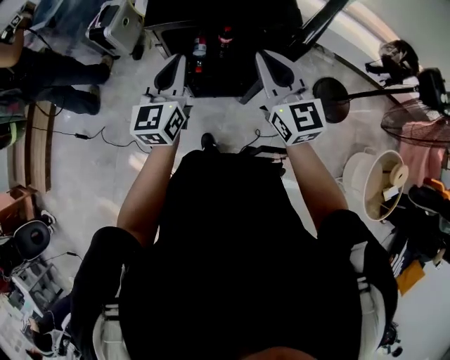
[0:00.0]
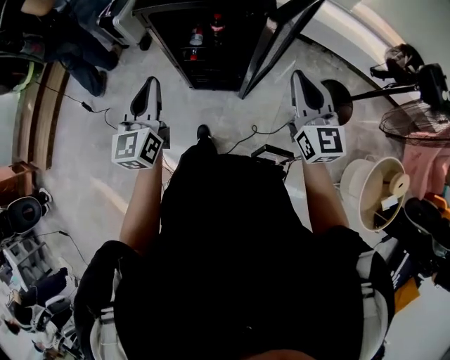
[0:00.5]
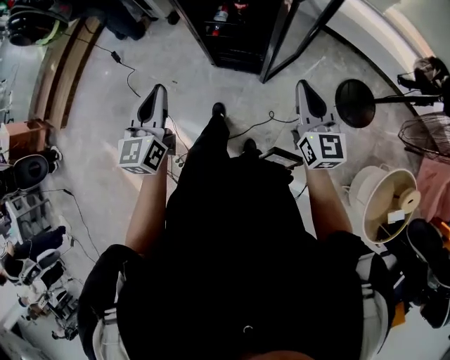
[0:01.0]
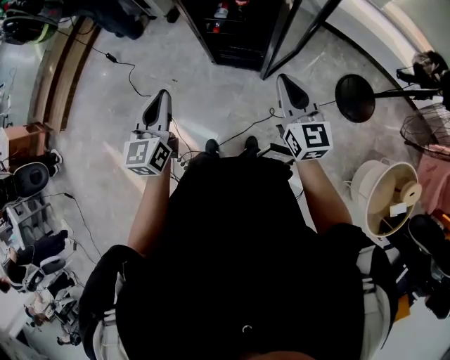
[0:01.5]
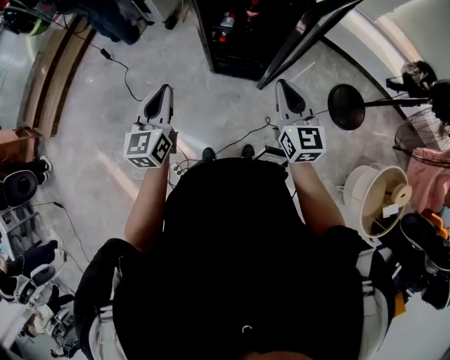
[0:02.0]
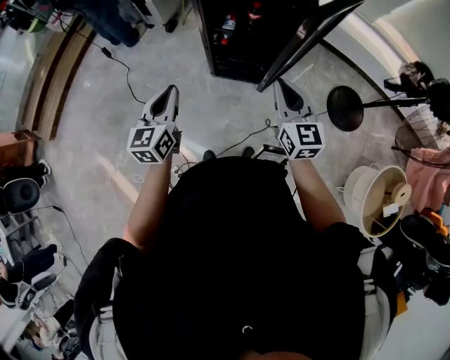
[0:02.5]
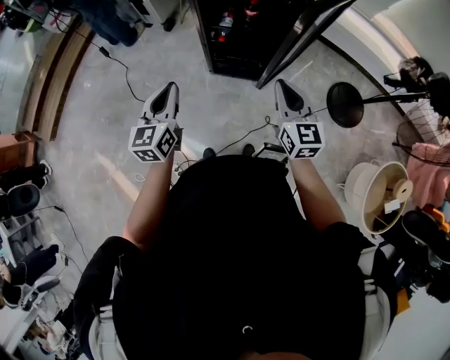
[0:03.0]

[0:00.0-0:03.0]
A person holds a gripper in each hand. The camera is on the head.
0:00.0 to 0:01.5: The left gripper travels backward by about 25 cm, while the right gripper goes about 20 cm backward and downward.
0:01.5 to 0:03.0: The grippers both shift to the left by some 5 cm.

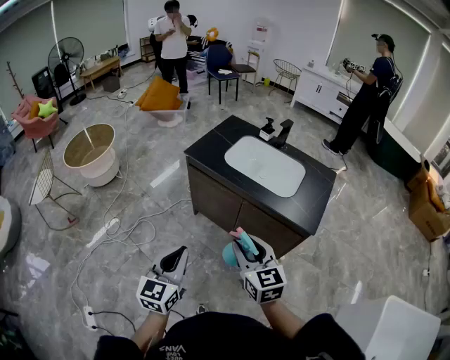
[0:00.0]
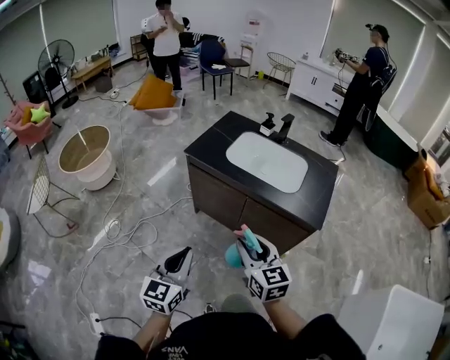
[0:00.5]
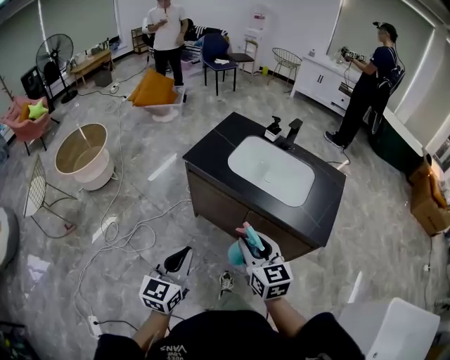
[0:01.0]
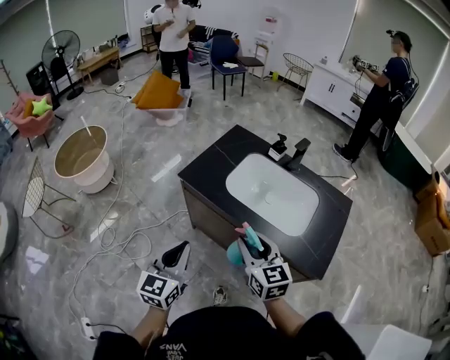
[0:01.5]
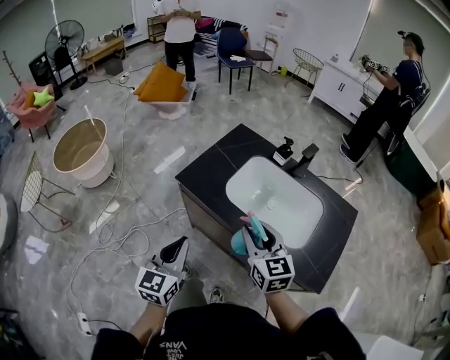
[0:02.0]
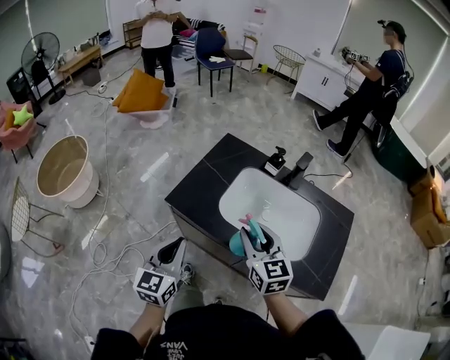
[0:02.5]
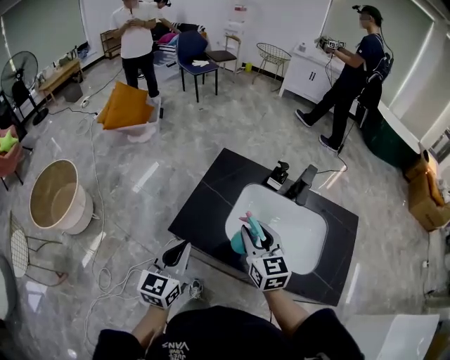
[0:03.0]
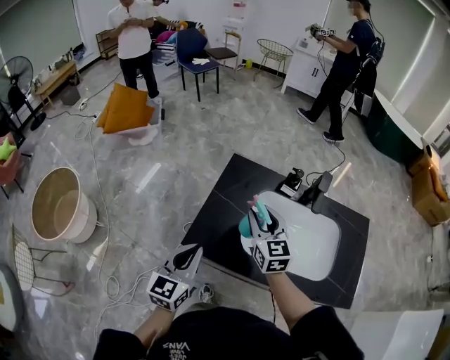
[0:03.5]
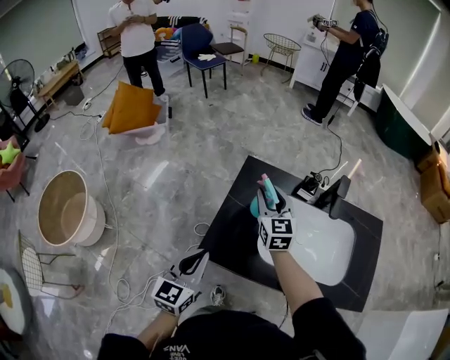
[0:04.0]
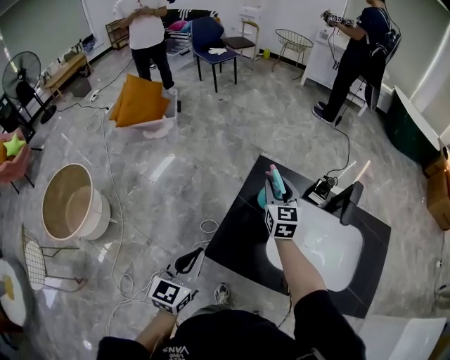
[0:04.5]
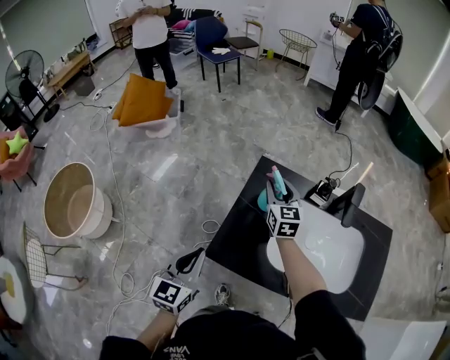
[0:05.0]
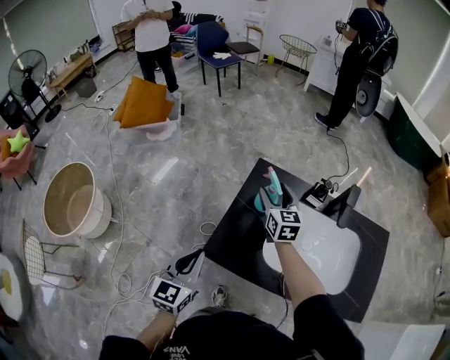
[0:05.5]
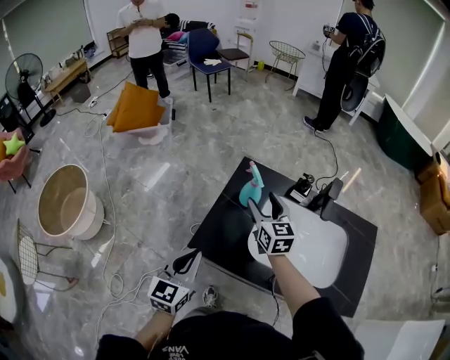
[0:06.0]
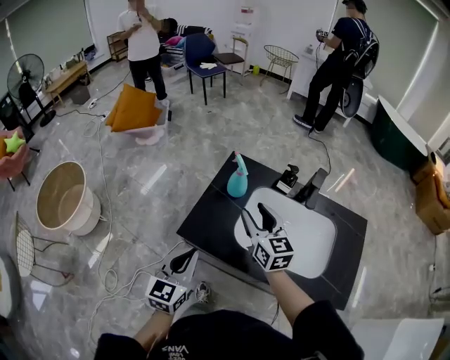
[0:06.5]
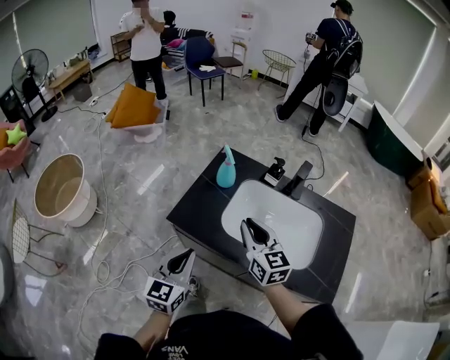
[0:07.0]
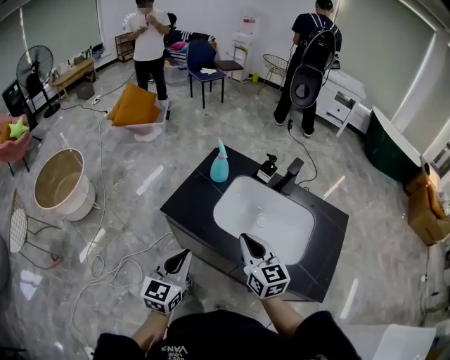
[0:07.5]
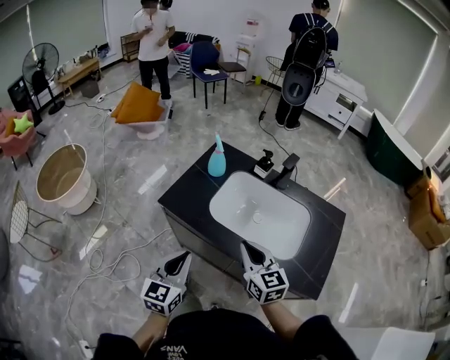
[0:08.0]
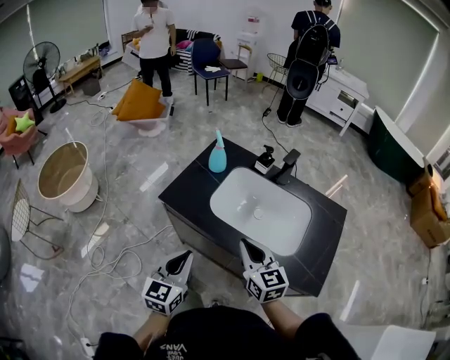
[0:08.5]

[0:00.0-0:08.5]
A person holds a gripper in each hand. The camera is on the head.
0:00.0 to 0:02.0: The grippers both shift forward by roughly 30 cm.
0:02.0 to 0:04.0: The right gripper goes some 35 cm forward, and turns by approximately 20 degrees; the left gripper heads forward and to the left, covering approximately 30 cm, and swivels about 20 degrees.
0:04.0 to 0:06.5: The right gripper travels backward by roughly 15 cm; the left gripper is displaced backward and to the right by approximately 10 cm.
0:06.5 to 0:08.5: The left gripper moves backward and to the right, approximately 20 cm. Meanwhile the right gripper shifts about 25 cm backward, and closes up.

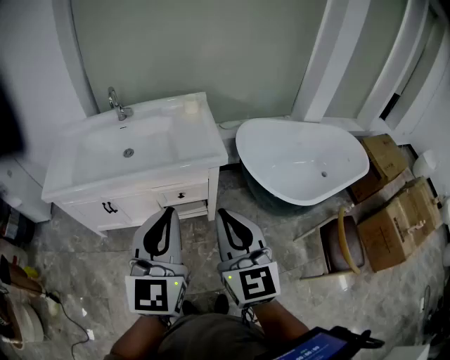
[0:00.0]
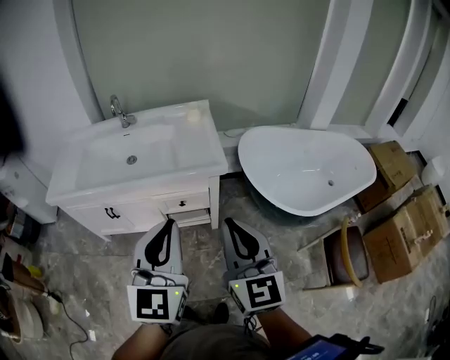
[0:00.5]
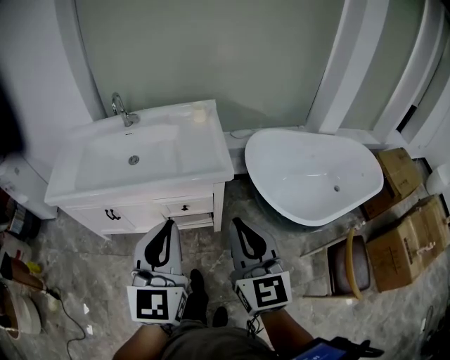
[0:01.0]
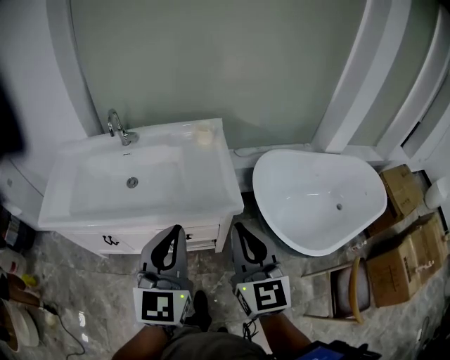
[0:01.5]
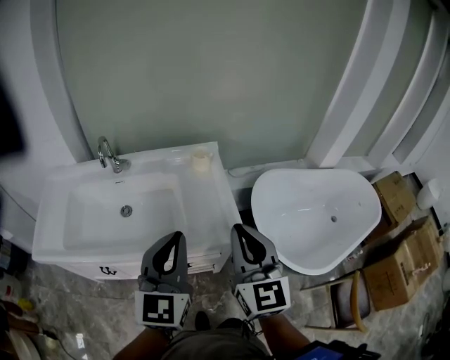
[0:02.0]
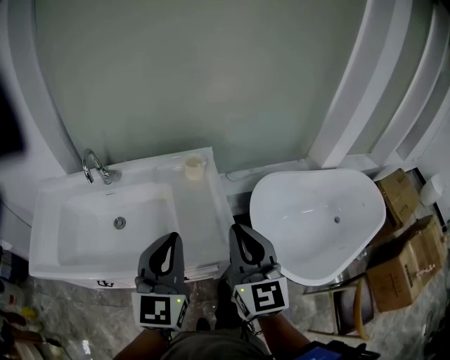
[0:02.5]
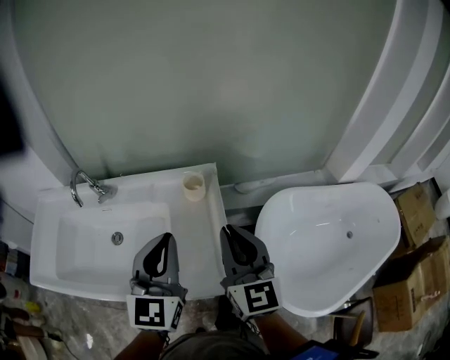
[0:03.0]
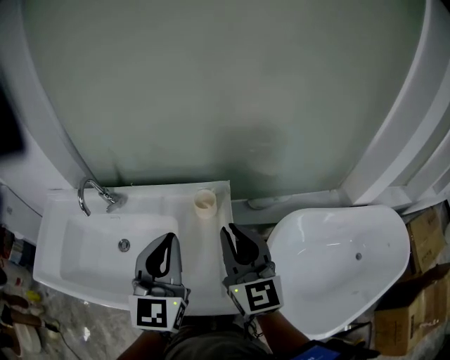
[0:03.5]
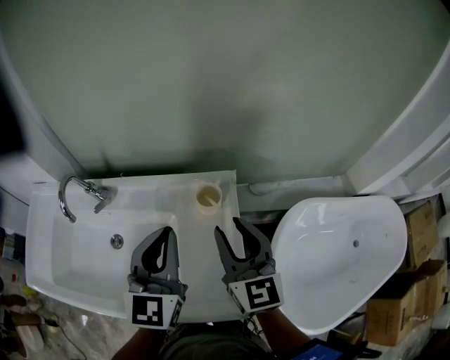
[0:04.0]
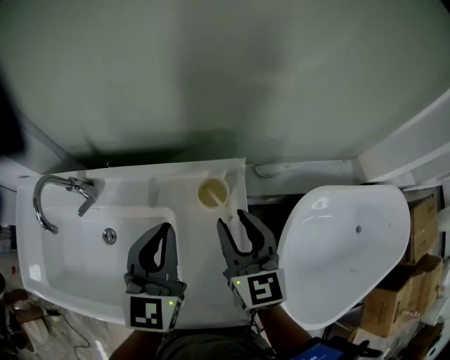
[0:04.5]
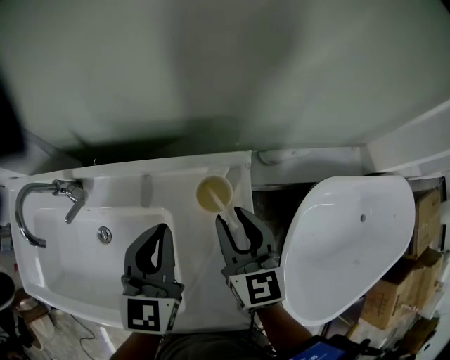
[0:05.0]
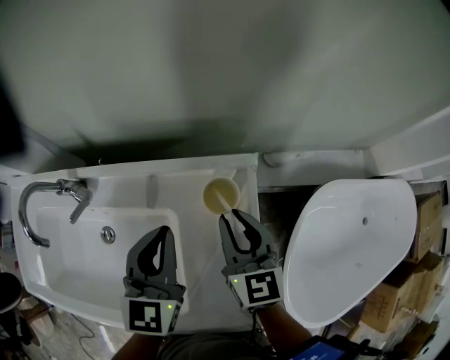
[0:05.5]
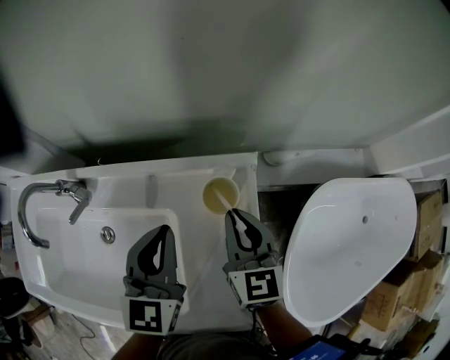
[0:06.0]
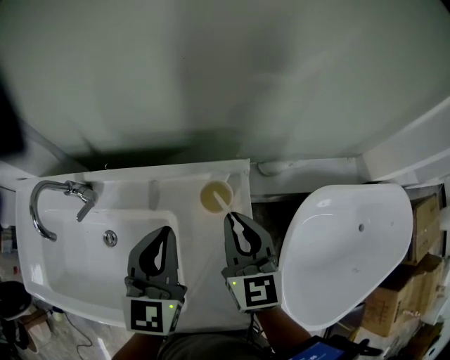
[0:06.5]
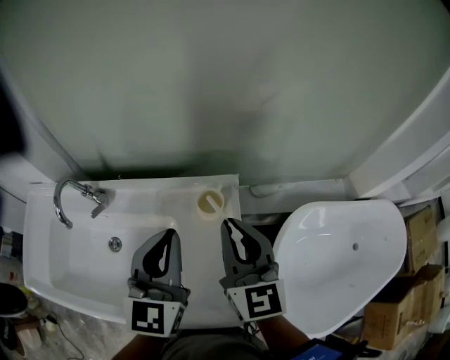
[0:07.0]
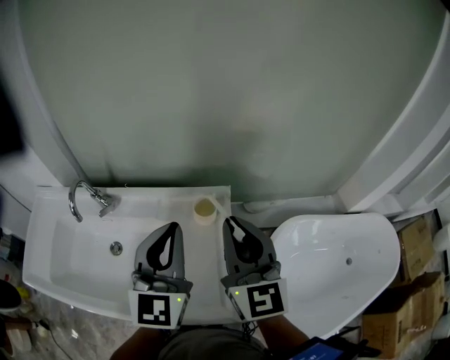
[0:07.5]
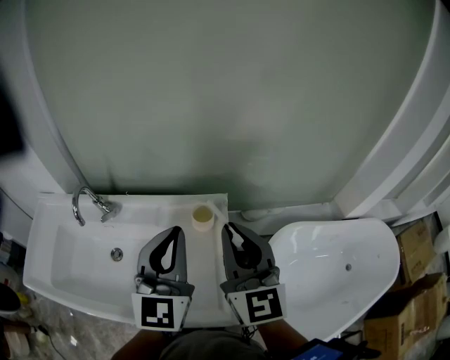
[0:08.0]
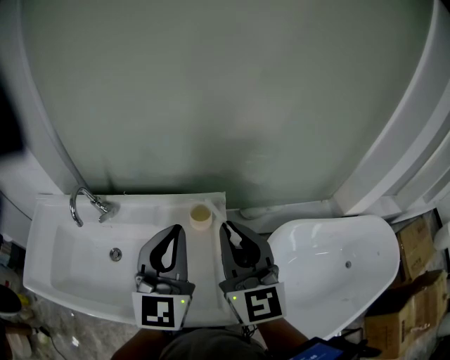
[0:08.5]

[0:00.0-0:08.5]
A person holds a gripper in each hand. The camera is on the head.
0:00.0 to 0:02.0: Both grippers move forward, about 30 cm.
0:02.0 to 0:04.0: Both grippers travel together forward, about 35 cm. The right gripper opens up.
0:04.0 to 0:06.5: The grippers both shift downward and forward by approximately 10 cm. The right gripper closes.
0:06.5 to 0:08.5: The grippers both shift upward and backward by some 20 cm. The right gripper rotates some 20 degrees.

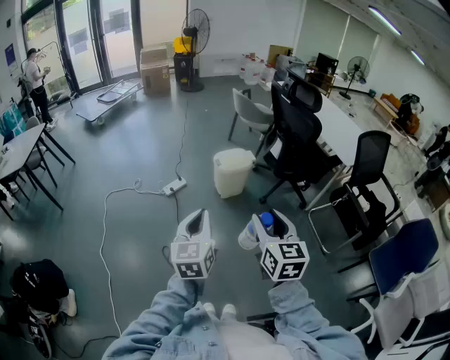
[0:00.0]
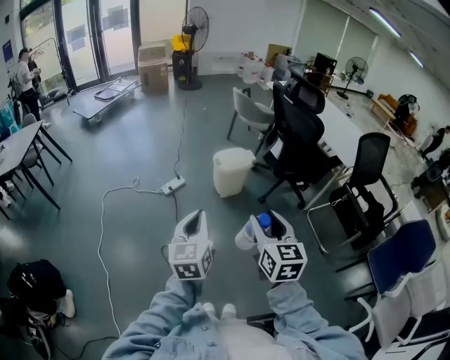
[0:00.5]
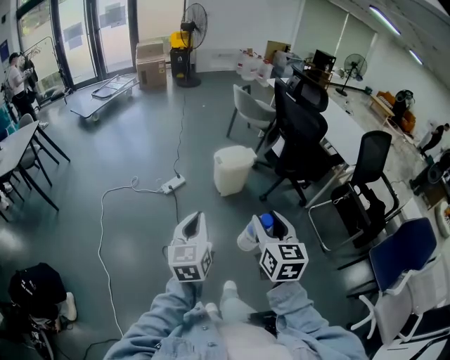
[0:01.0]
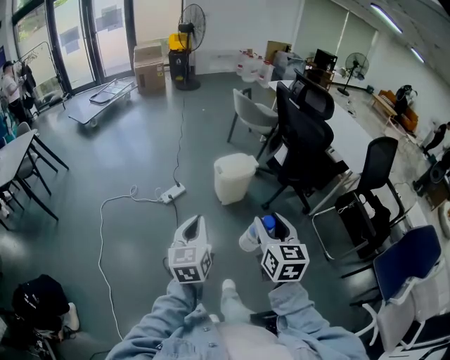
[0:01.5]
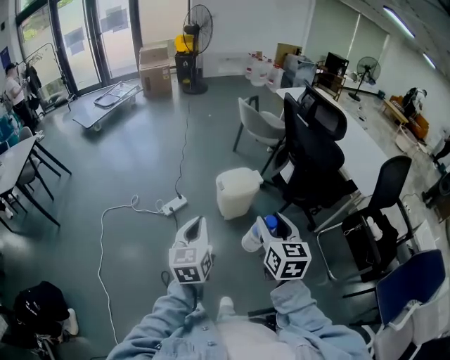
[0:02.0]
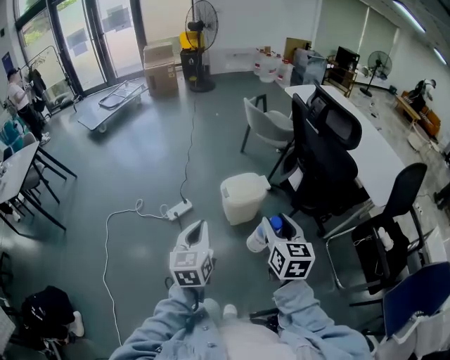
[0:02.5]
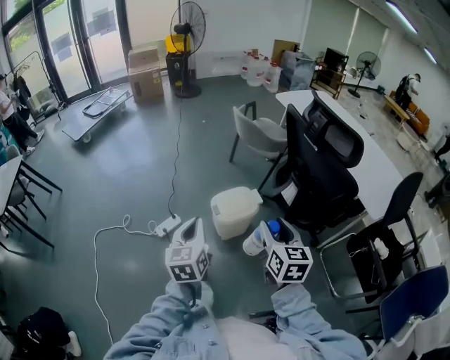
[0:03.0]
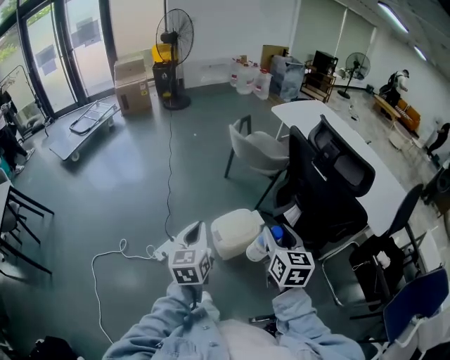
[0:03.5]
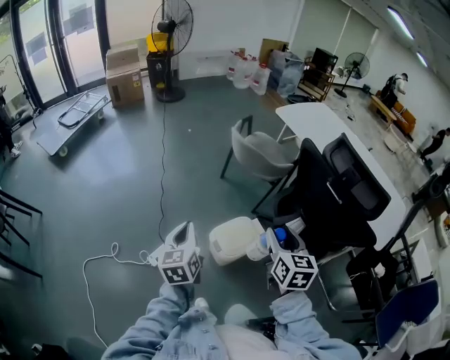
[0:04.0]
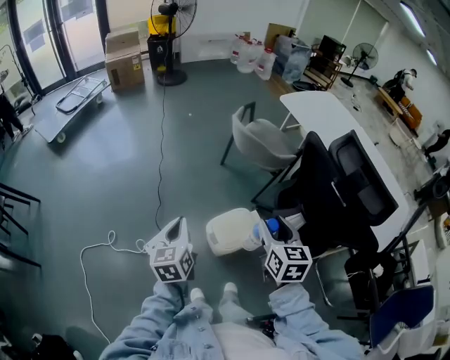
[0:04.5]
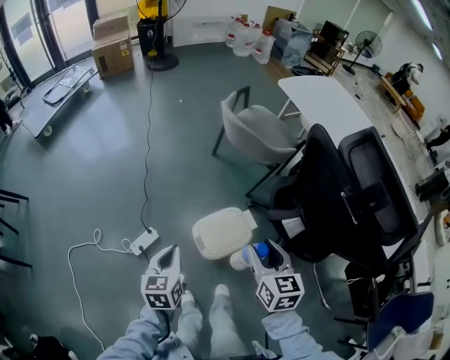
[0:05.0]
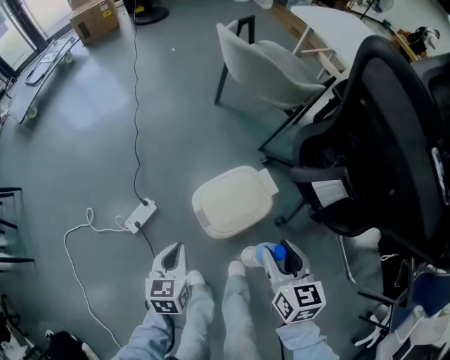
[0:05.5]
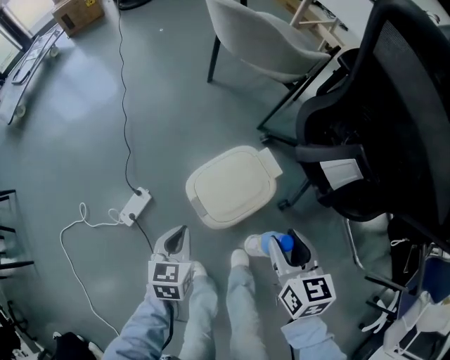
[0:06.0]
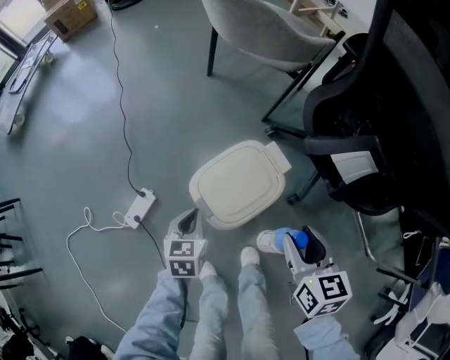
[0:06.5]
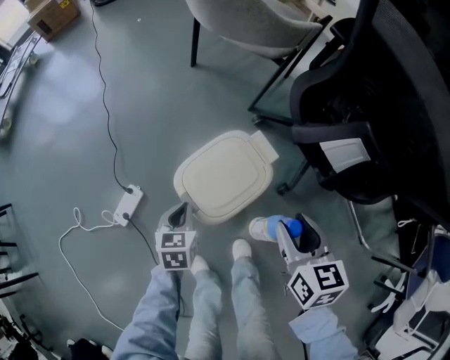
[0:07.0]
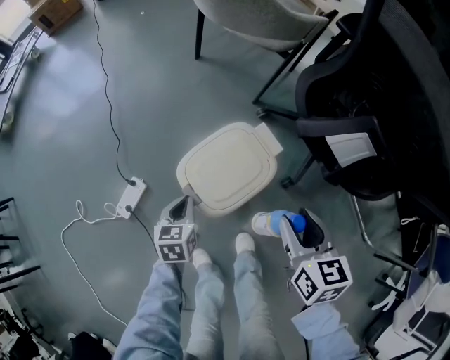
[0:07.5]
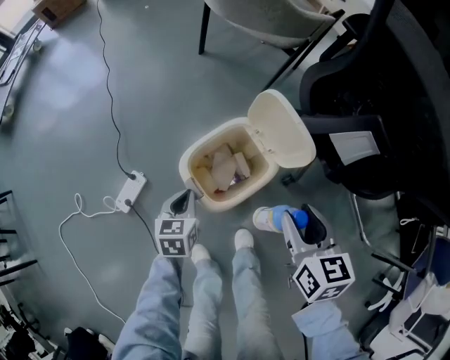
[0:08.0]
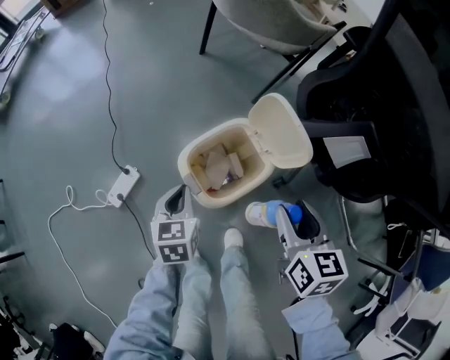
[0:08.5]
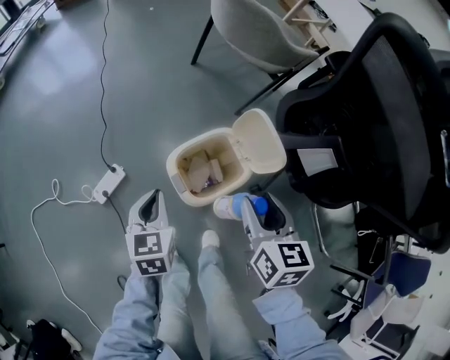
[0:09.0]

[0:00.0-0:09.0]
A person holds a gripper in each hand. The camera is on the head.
0:00.0 to 0:02.0: The grippers both shift forward by some 25 cm.
0:02.0 to 0:04.5: Both grippers are carried forward, roughly 50 cm.
0:04.5 to 0:07.0: Both grippers move downward, about 40 cm. The left gripper swivels some 40 degrees.
0:07.0 to 0:09.0: The left gripper heads upward, covering about 15 cm. The right gripper moves upward and to the left, about 10 cm.
